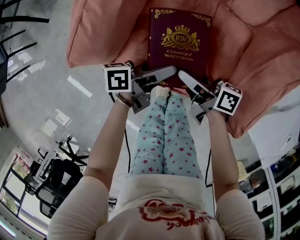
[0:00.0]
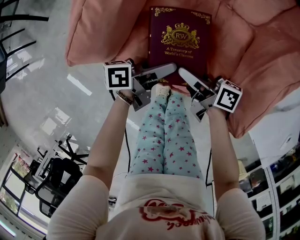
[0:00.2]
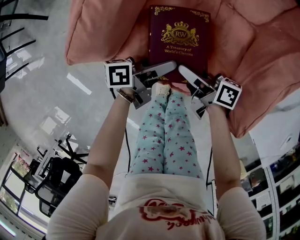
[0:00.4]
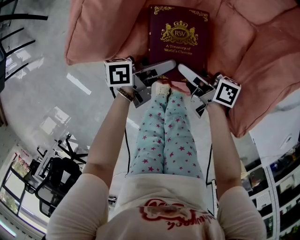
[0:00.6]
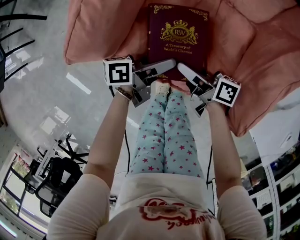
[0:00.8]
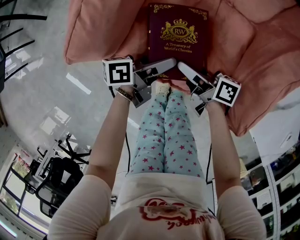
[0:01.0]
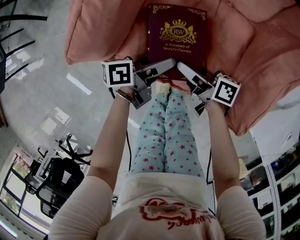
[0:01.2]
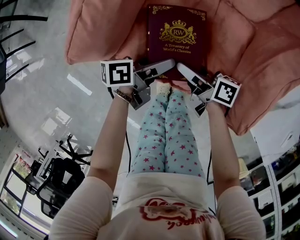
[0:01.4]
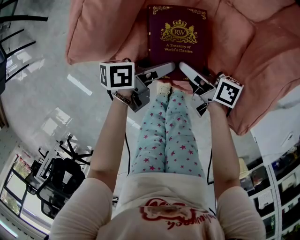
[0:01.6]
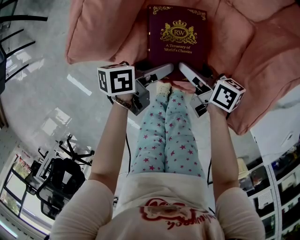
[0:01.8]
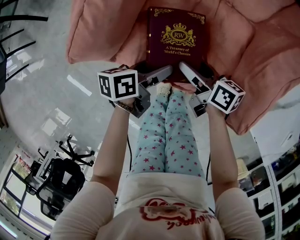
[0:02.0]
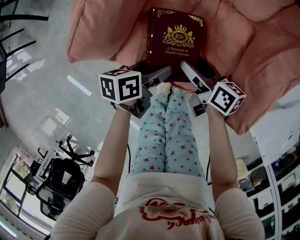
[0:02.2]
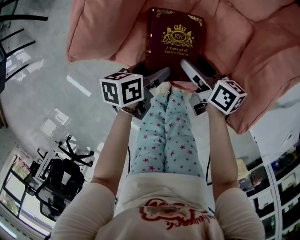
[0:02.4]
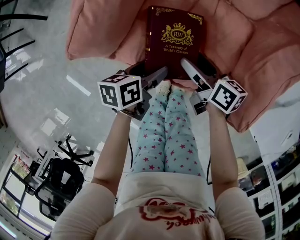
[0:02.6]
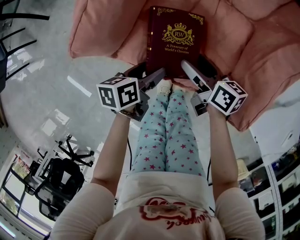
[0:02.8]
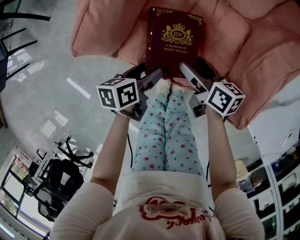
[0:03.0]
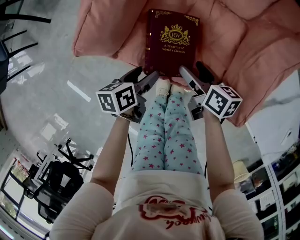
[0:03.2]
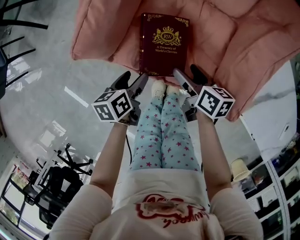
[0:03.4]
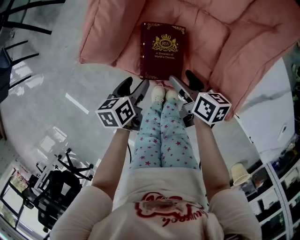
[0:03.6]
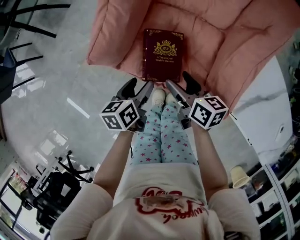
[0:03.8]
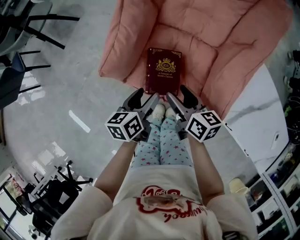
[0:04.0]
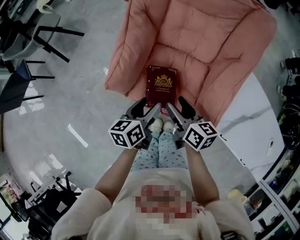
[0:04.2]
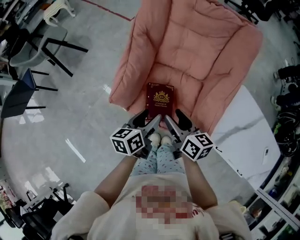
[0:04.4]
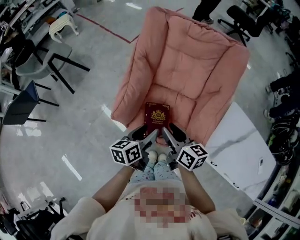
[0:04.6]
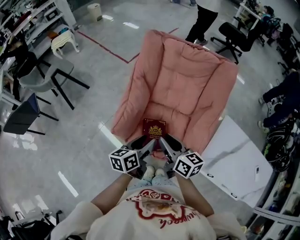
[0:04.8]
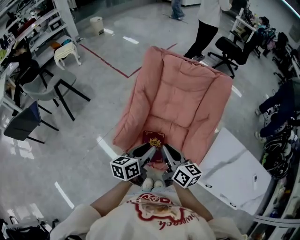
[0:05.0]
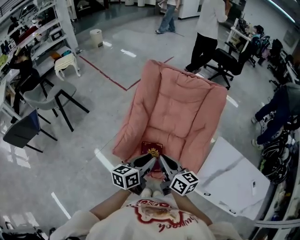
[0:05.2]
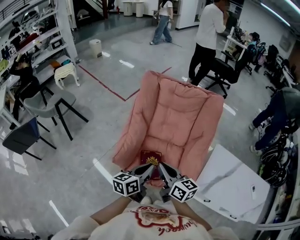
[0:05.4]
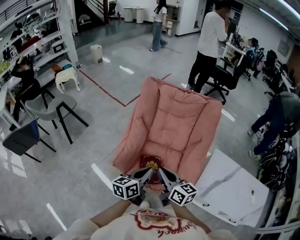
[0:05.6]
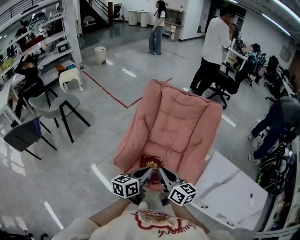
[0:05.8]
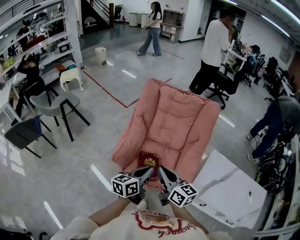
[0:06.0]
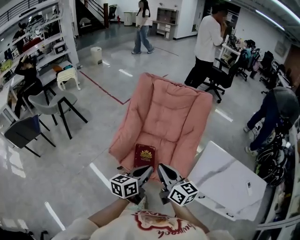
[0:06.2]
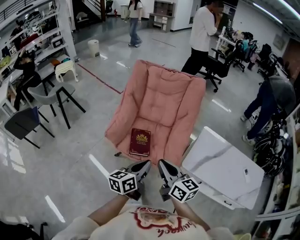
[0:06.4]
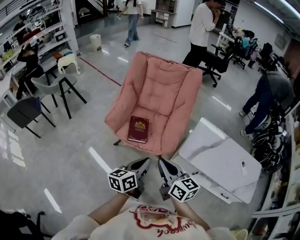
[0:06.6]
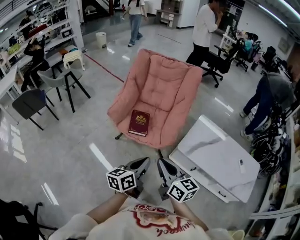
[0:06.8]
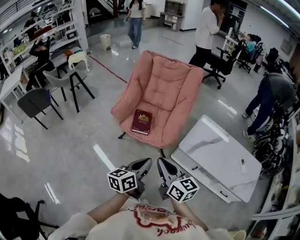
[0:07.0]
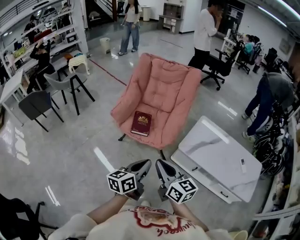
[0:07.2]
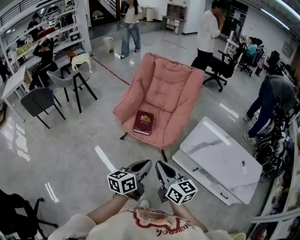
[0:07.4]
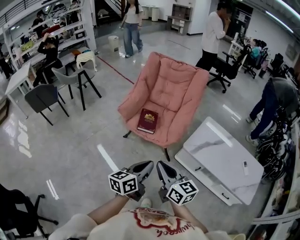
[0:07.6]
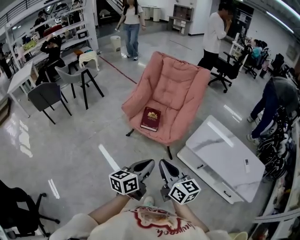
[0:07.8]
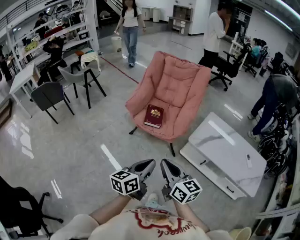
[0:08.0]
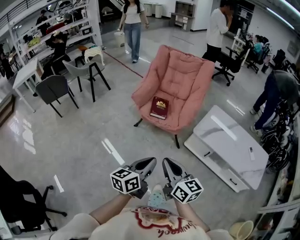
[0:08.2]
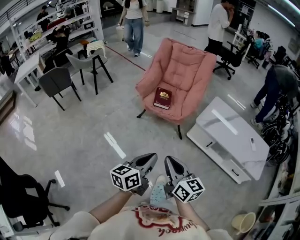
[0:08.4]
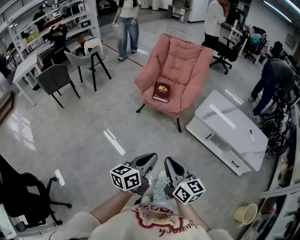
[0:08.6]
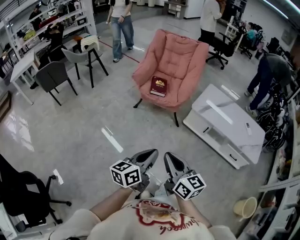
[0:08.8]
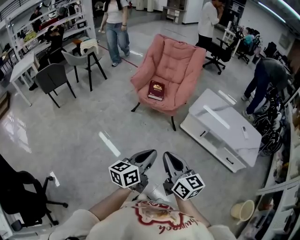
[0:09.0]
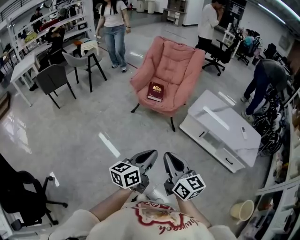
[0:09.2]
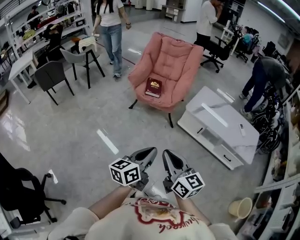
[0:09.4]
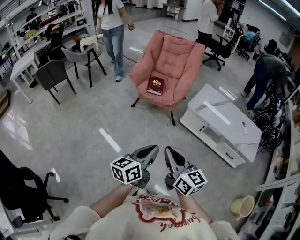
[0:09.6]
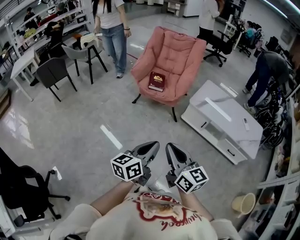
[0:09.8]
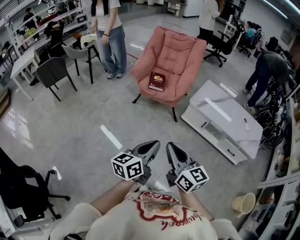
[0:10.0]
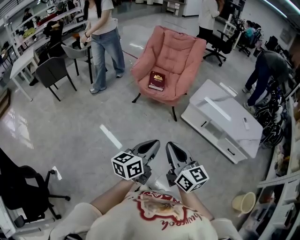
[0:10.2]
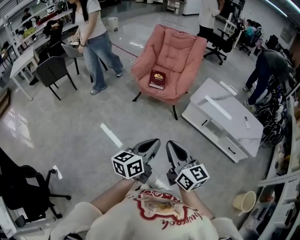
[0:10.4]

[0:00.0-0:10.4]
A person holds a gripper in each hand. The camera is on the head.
0.0 to 1.4 s: The grippers make only small movements.
1.4 to 3.0 s: The right gripper turns by some 20 degrees; the left gripper ends up some 5 cm from where it was, and changes its angle by some 30 degrees.
3.0 to 4.4 s: The grippers both shift upward by some 25 cm. The right gripper changes its angle by some 20 degrees; the left gripper changes its angle by some 20 degrees.
4.4 to 6.0 s: The grippers both shift upward and backward by about 20 cm. The left gripper swivels about 20 degrees, and closes its fingers. The right gripper turns by some 20 degrees, and closes.
6.0 to 7.4 s: Both grippers move backward, approximately 35 cm.
7.4 to 9.0 s: Both grippers move backward, approximately 30 cm.
9.0 to 10.4 s: The grippers make only small movements.

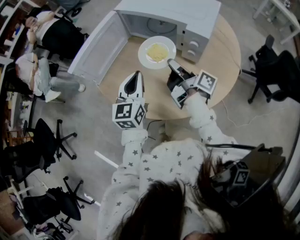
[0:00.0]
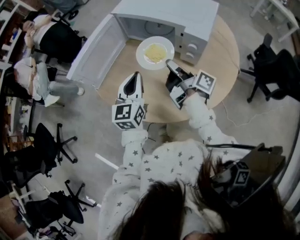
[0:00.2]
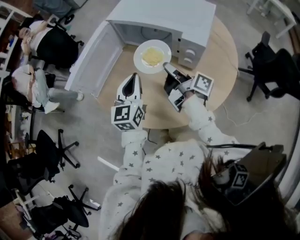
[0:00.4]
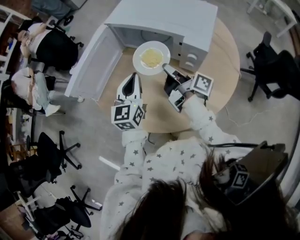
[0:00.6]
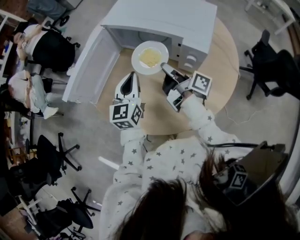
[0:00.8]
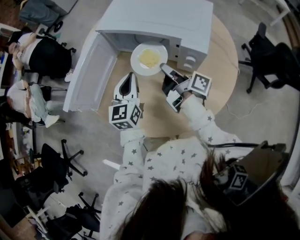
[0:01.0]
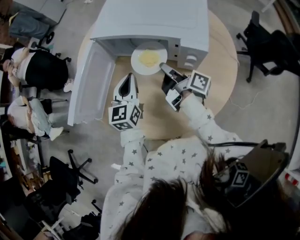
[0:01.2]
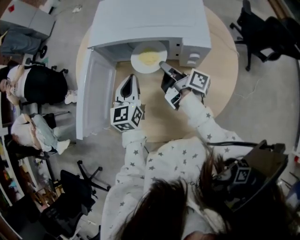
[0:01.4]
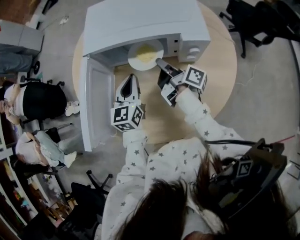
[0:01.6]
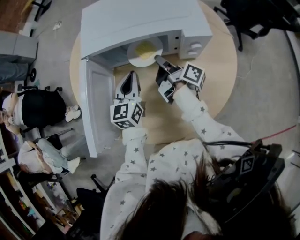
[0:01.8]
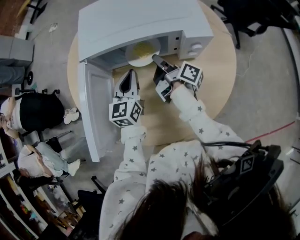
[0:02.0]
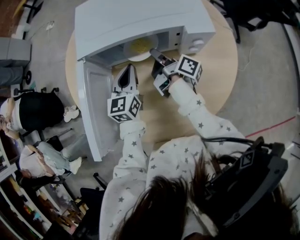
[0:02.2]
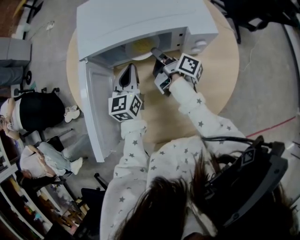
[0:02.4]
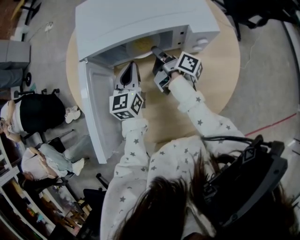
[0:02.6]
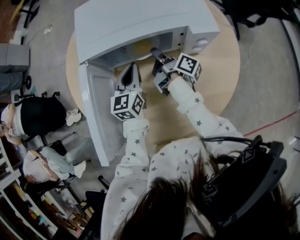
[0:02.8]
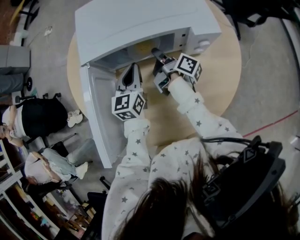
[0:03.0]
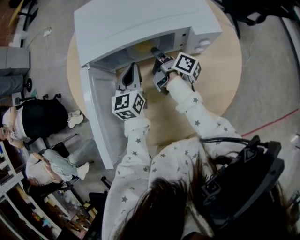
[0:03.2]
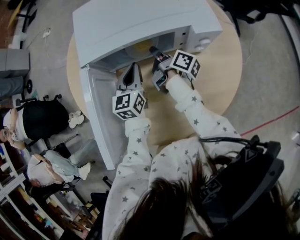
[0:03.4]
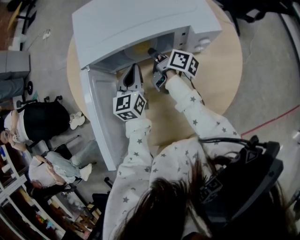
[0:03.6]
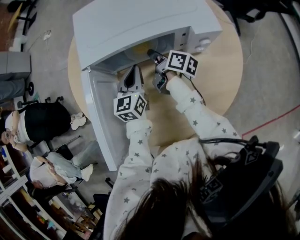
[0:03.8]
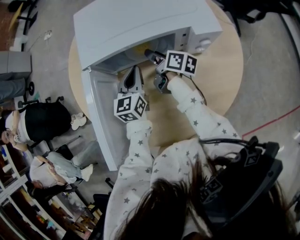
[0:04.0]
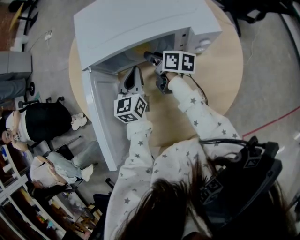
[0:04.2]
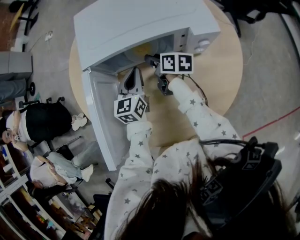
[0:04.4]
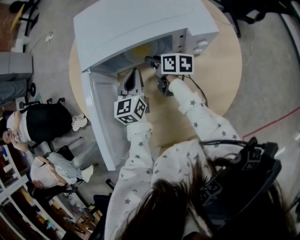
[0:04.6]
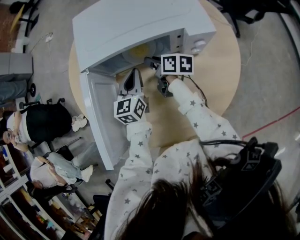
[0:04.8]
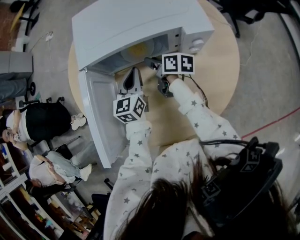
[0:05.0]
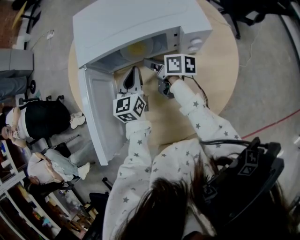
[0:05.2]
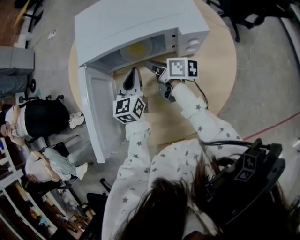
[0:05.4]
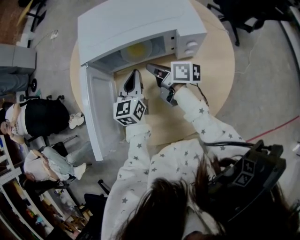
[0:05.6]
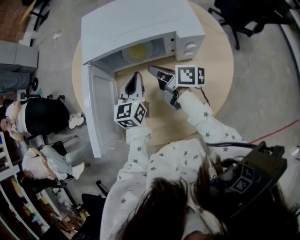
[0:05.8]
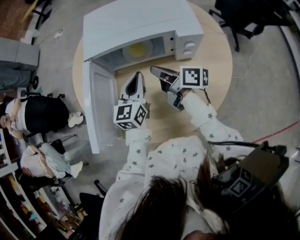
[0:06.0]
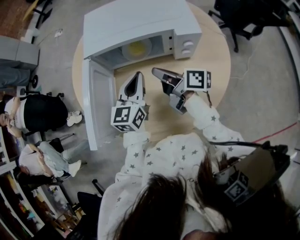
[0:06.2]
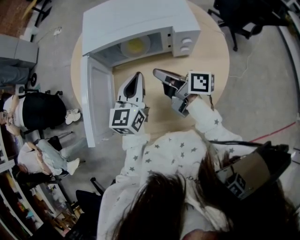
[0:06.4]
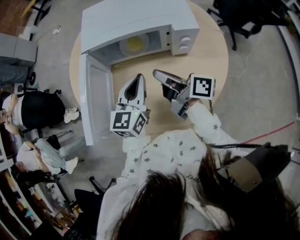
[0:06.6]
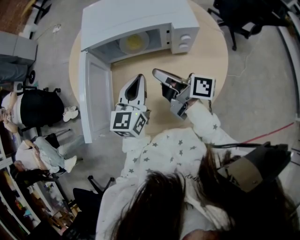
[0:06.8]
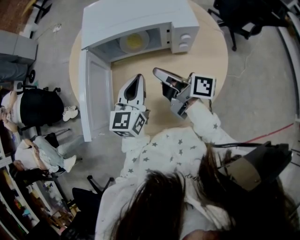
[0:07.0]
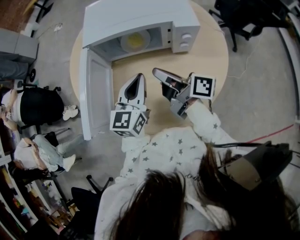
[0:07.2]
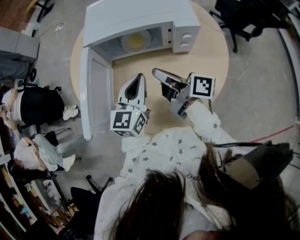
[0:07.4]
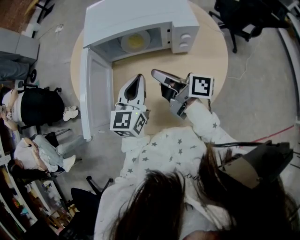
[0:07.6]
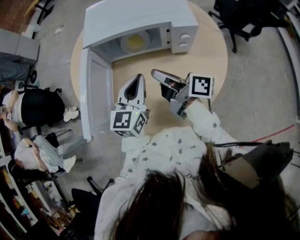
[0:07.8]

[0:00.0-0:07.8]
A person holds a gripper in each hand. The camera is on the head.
0.0 to 1.6 s: The left gripper moves approximately 20 cm, and turns by some 30 degrees.
1.6 to 3.2 s: The left gripper changes place by about 10 cm.
4.6 to 6.2 s: The left gripper ends up approximately 10 cm from where it was.
6.2 to 7.8 s: The left gripper ends up some 5 cm from where it was.

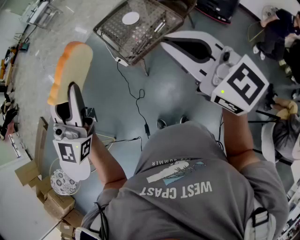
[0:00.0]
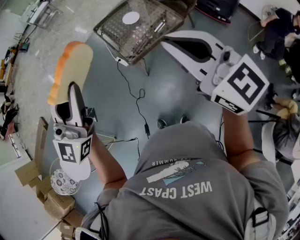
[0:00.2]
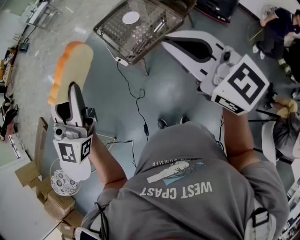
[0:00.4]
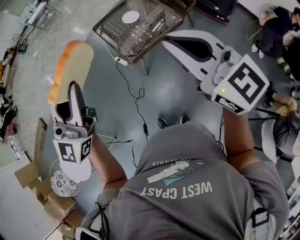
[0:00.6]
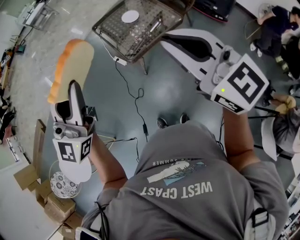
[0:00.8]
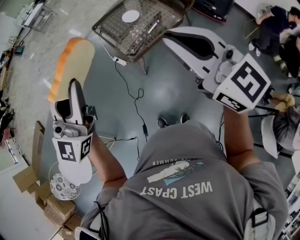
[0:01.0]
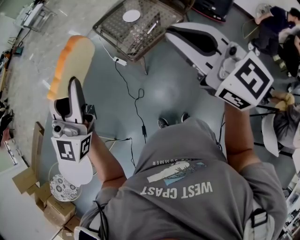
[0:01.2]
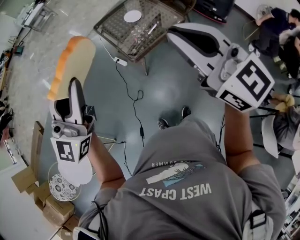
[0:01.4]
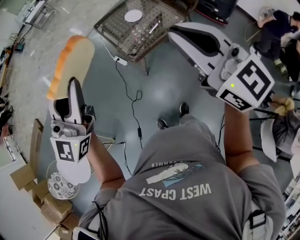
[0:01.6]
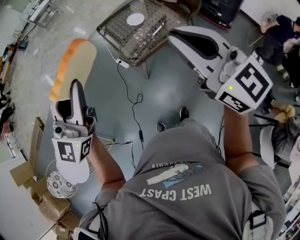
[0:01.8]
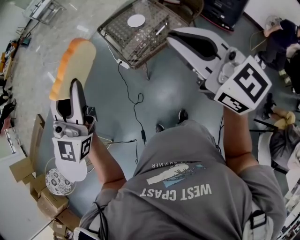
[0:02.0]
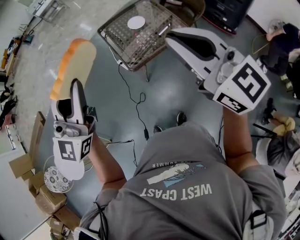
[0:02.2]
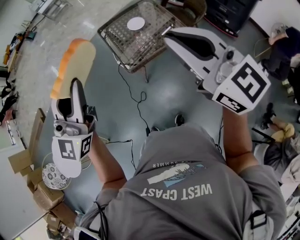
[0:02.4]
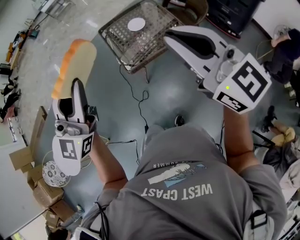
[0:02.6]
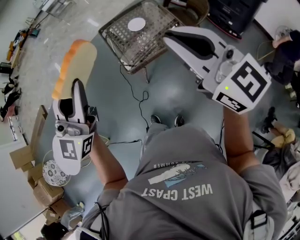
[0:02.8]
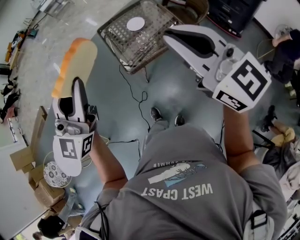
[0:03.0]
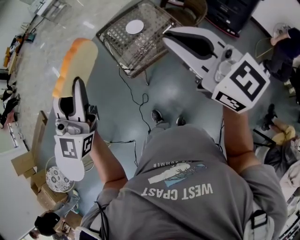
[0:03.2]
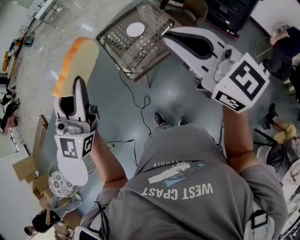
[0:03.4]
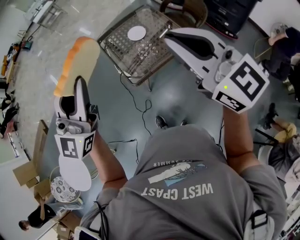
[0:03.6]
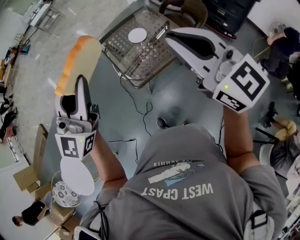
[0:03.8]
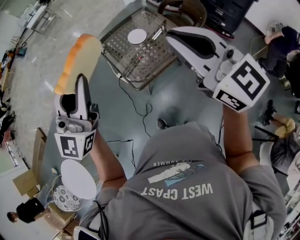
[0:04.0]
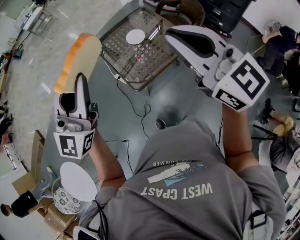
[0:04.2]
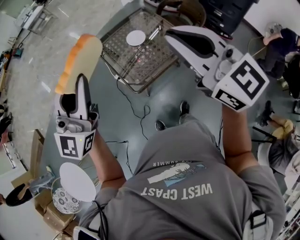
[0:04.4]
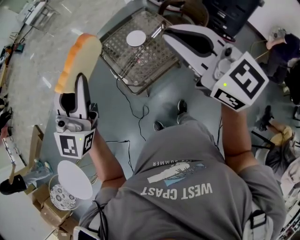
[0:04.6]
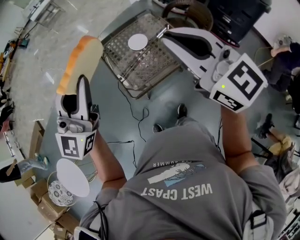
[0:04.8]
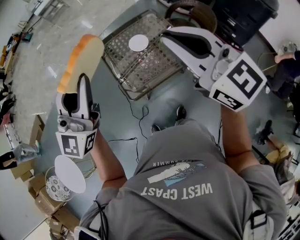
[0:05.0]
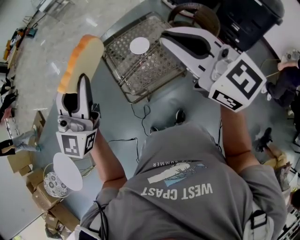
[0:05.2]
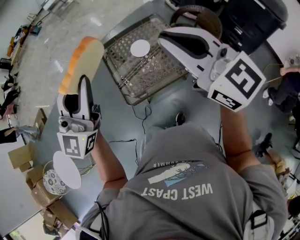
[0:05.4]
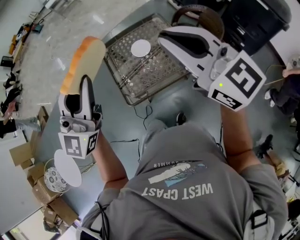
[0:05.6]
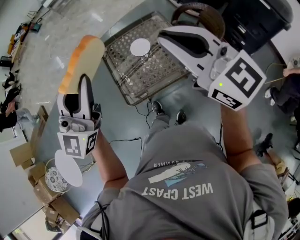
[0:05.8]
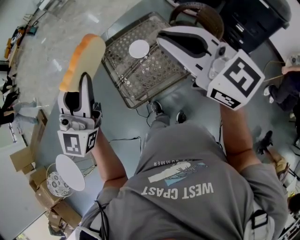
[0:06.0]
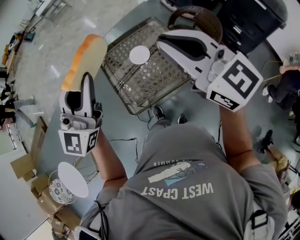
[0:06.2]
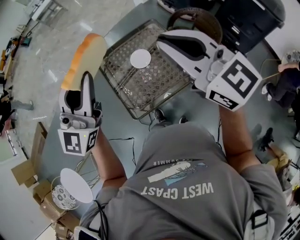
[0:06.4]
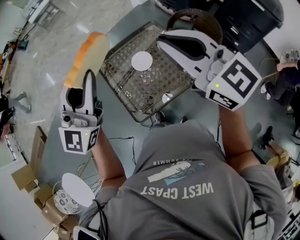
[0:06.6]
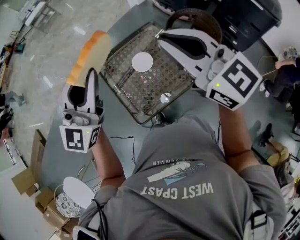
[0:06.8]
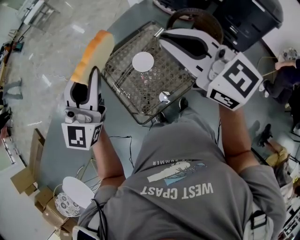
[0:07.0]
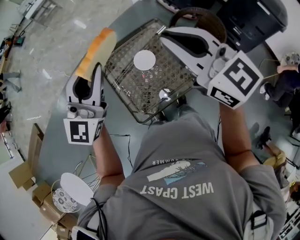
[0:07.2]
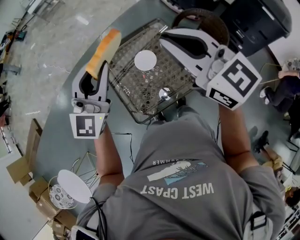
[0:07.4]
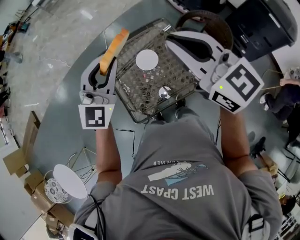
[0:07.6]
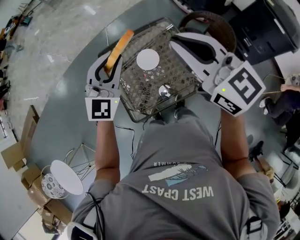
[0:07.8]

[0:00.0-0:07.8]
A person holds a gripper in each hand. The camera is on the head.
1.6 to 3.2 s: Both grippers travel together to the right and forward, some 15 cm.
3.2 to 4.6 s: The two grippers go about 15 cm forward.
4.6 to 6.2 s: Both grippers move forward and to the right, approximately 20 cm.
6.2 to 7.8 s: The left gripper moves forward and downward, about 25 cm, and swivels about 20 degrees; the right gripper shifts approximately 15 cm forward.
